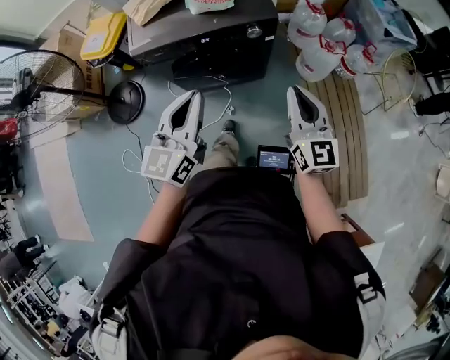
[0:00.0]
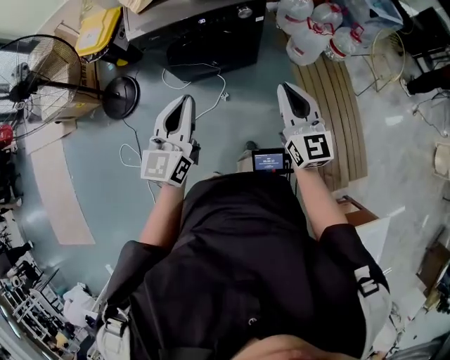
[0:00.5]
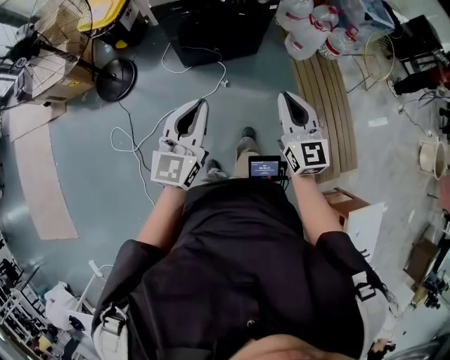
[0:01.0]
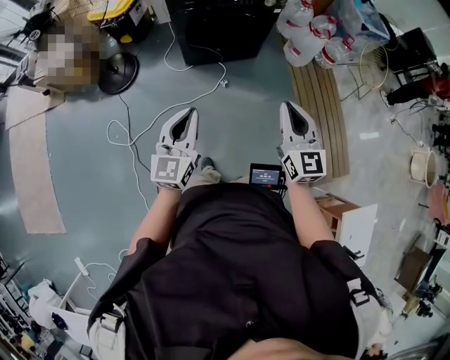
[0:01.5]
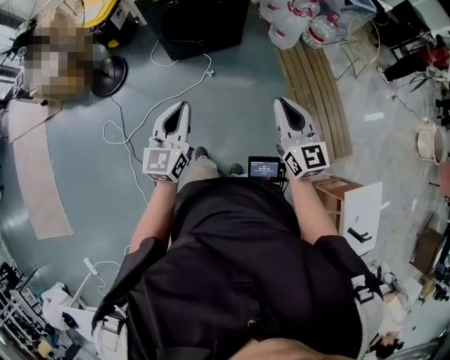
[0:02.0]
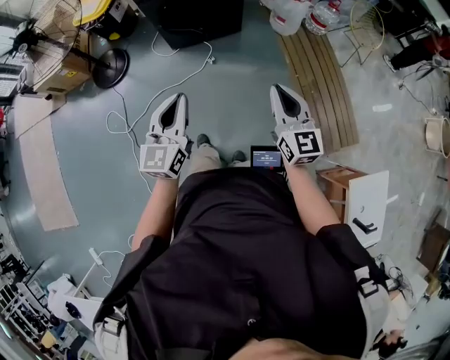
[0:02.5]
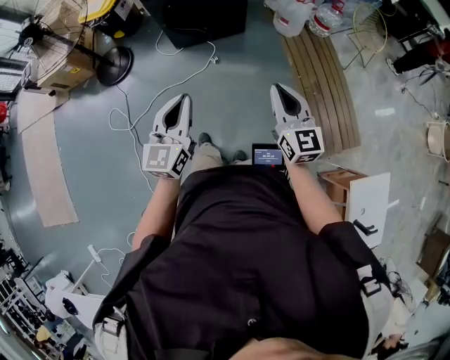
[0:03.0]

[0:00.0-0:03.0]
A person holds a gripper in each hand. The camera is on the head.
0.0 to 1.5 s: The left gripper heads backward and to the left, covering about 40 cm. Meanwhile the right gripper moves backward, roughly 35 cm.
1.5 to 3.0 s: Both grippers move to the right and backward, some 15 cm.

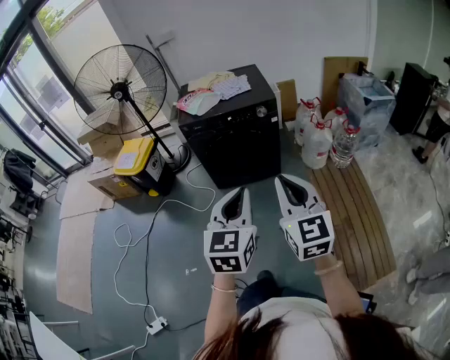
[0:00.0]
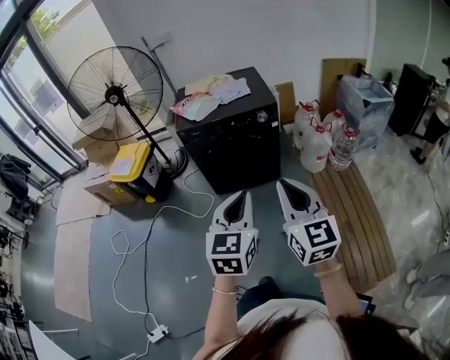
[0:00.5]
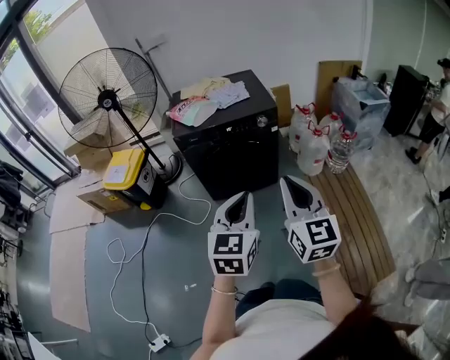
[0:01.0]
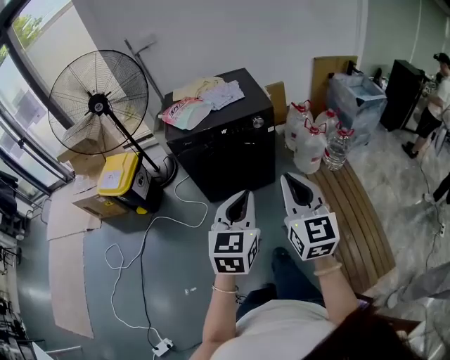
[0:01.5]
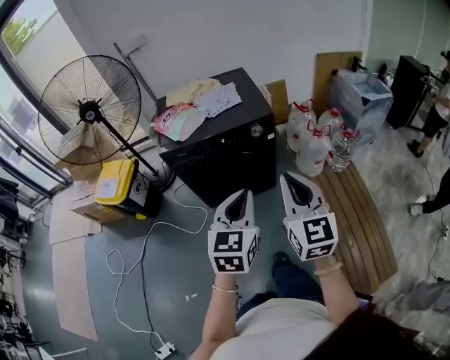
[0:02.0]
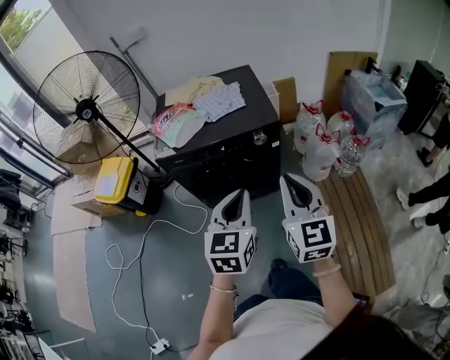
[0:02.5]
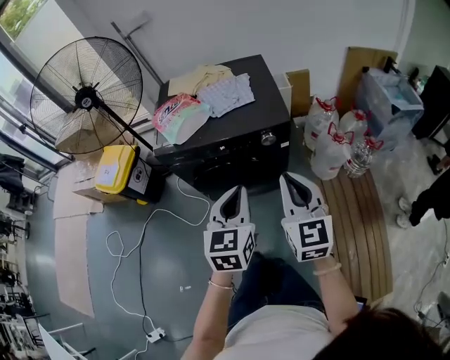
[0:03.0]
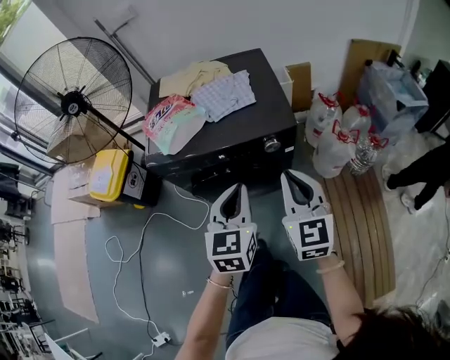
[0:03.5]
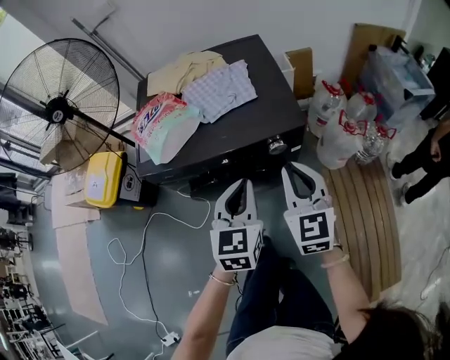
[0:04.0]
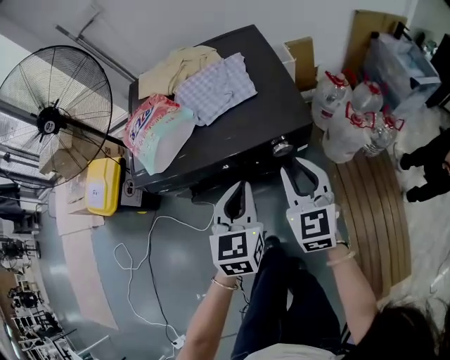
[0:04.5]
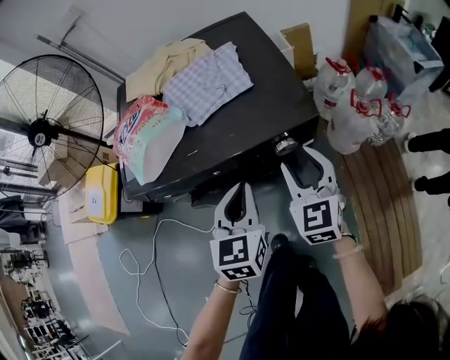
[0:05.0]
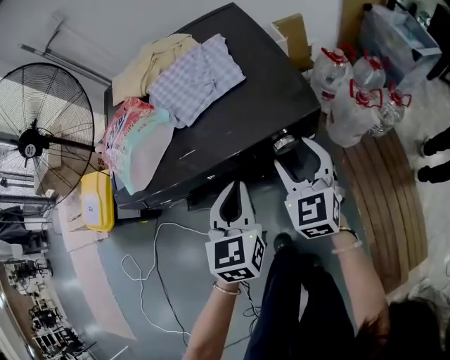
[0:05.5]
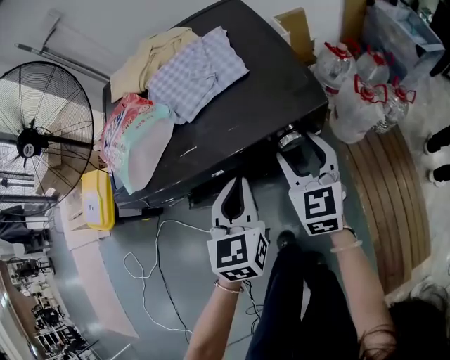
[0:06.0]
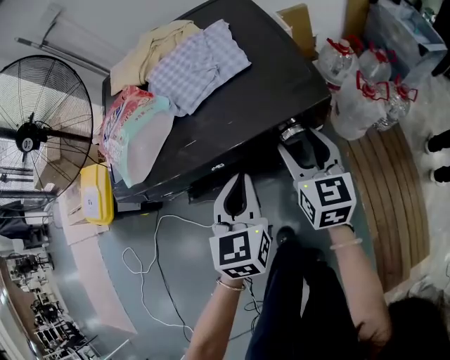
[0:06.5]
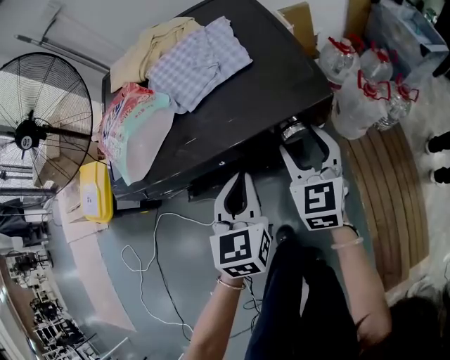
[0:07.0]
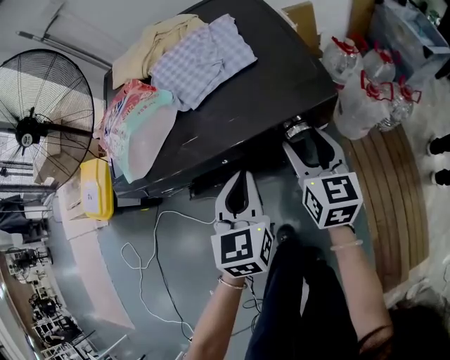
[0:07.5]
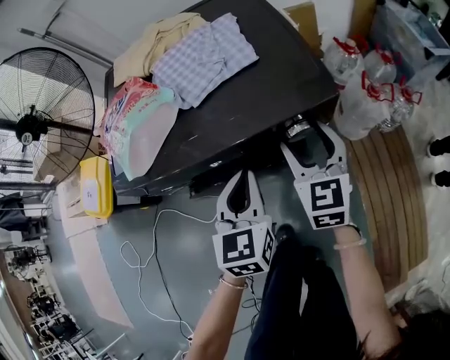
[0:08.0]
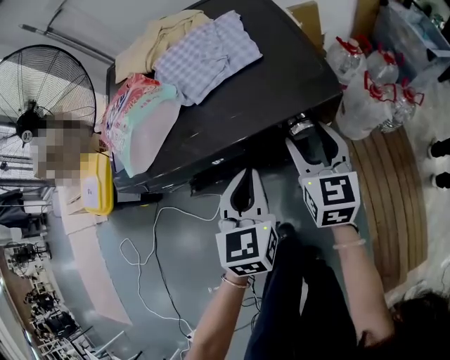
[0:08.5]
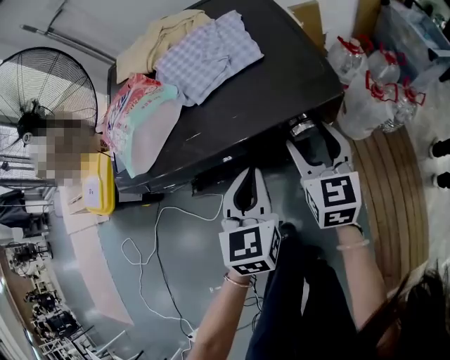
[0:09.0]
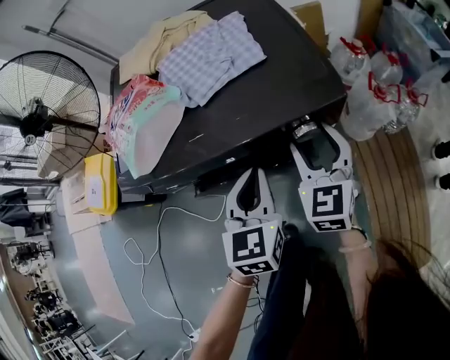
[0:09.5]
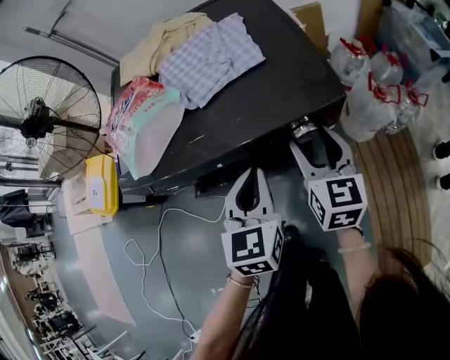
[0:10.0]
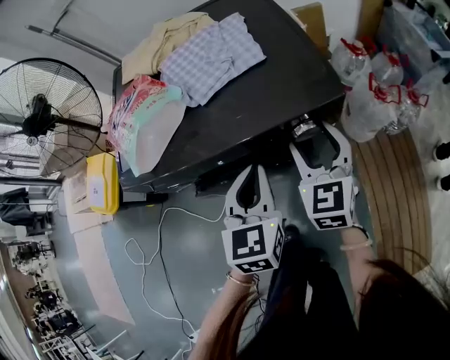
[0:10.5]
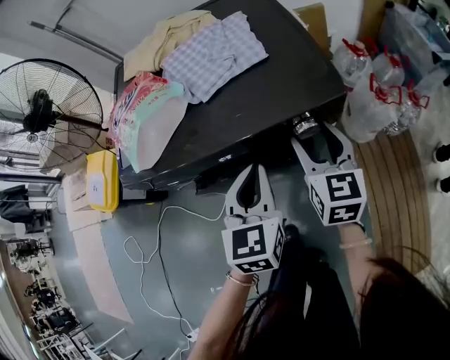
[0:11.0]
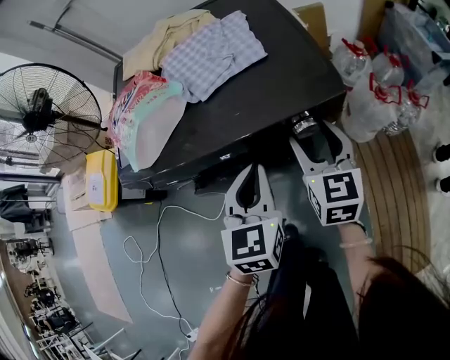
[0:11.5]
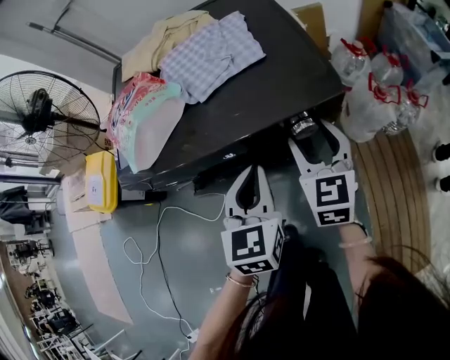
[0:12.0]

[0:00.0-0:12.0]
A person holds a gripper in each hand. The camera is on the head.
0.0 to 2.0 s: The two grippers go some 20 cm forward.
2.0 to 4.0 s: The grippers both shift forward and downward by roughly 35 cm.
4.0 to 6.0 s: Both grippers travel together downward and forward, some 15 cm. The right gripper opens.
6.0 to 8.0 s: There are only small adjustments of the grippers.

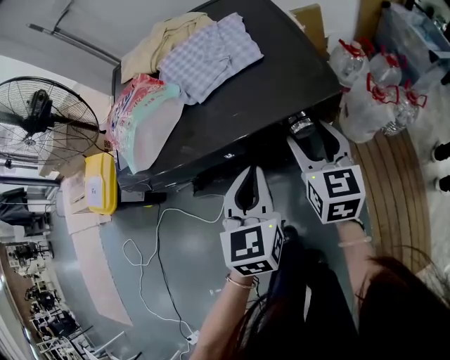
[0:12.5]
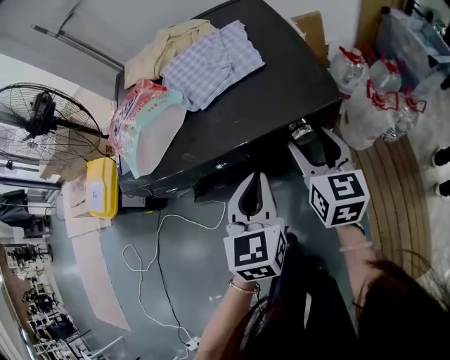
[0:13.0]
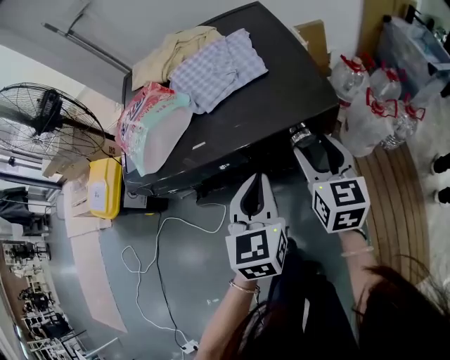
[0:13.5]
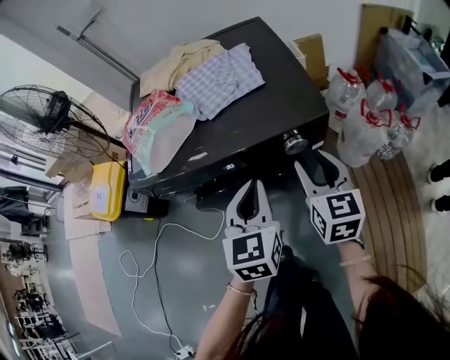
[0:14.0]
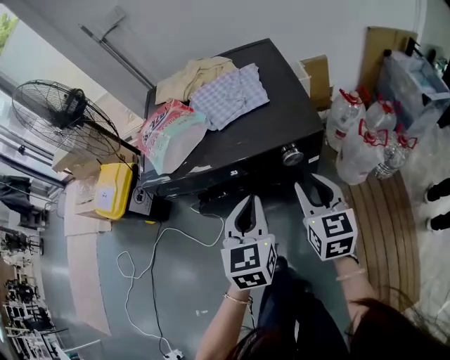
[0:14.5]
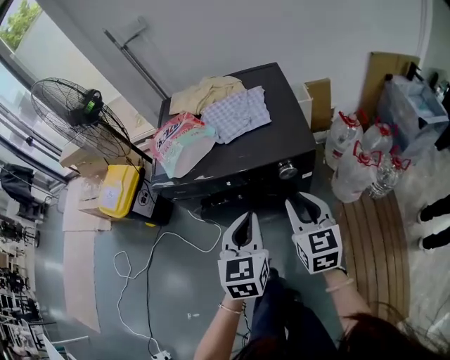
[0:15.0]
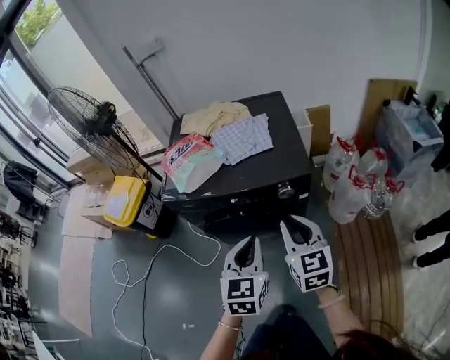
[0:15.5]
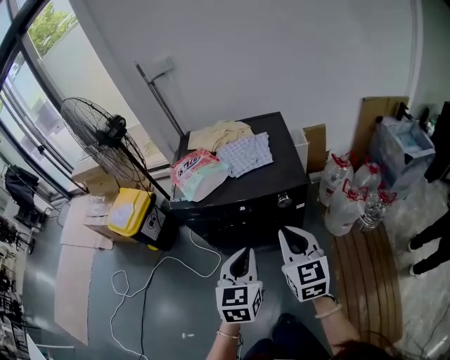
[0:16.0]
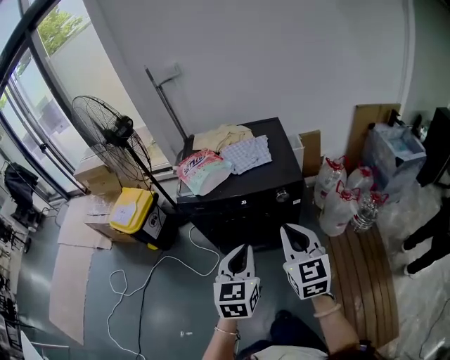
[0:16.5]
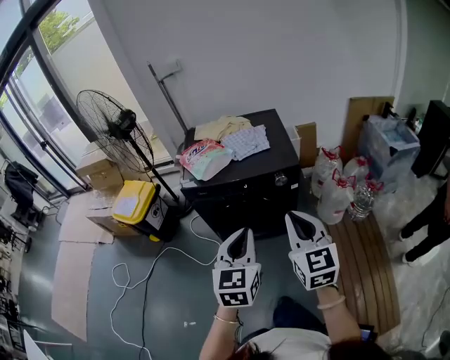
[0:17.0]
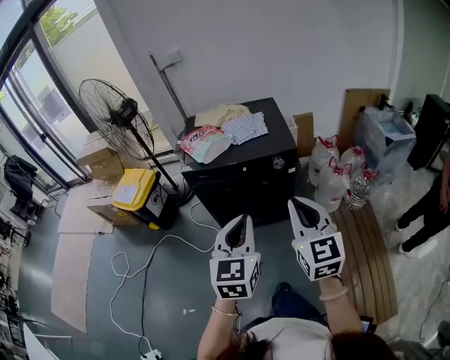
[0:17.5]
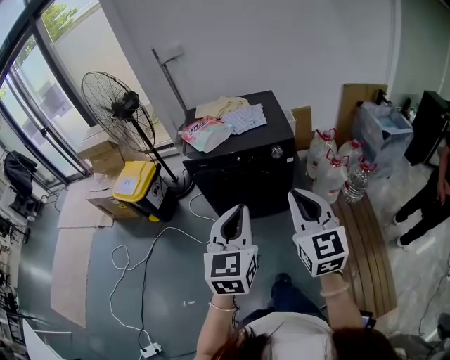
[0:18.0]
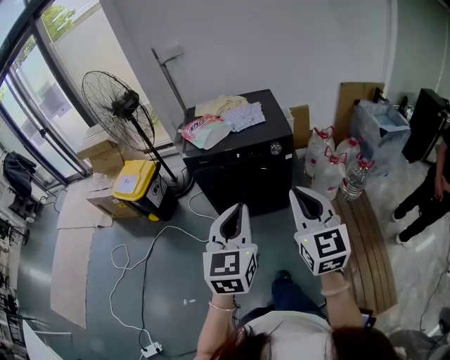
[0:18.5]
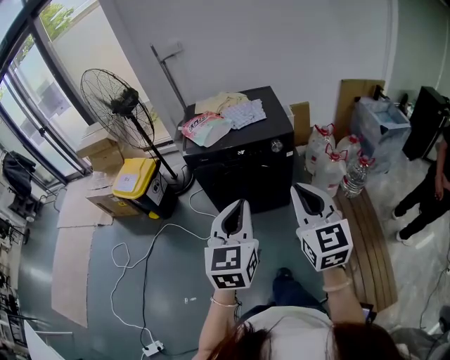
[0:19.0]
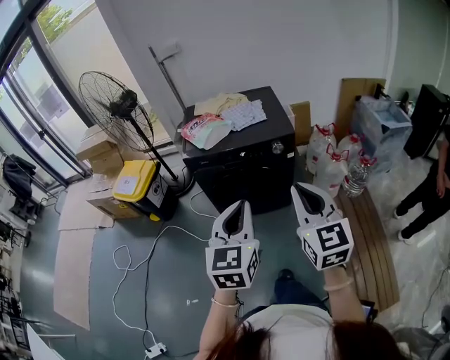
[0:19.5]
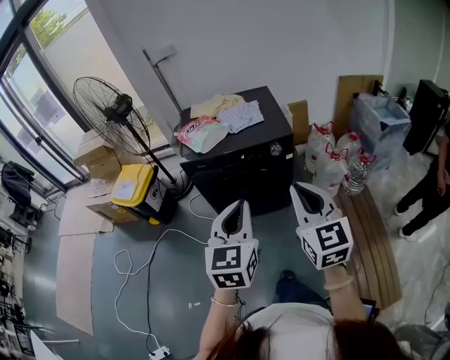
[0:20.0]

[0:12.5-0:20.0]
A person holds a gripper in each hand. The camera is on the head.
12.5 to 14.5 s: The left gripper goes about 10 cm backward and upward, while the right gripper travels backward by about 10 cm, and closes up.
14.5 to 16.5 s: The right gripper is displaced upward and backward by roughly 25 cm, and closes. Meanwhile the left gripper travels backward and upward by roughly 25 cm.
16.5 to 18.0 s: The two grippers go some 20 cm backward and upward.
18.0 to 20.0 s: The grippers stay close to where they were, moving slightly.

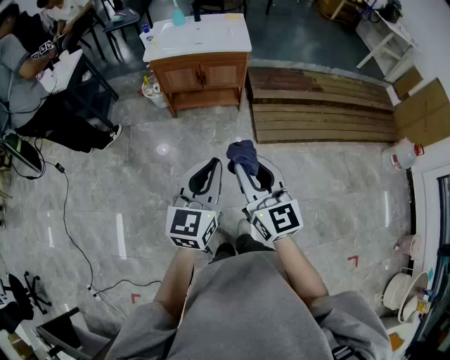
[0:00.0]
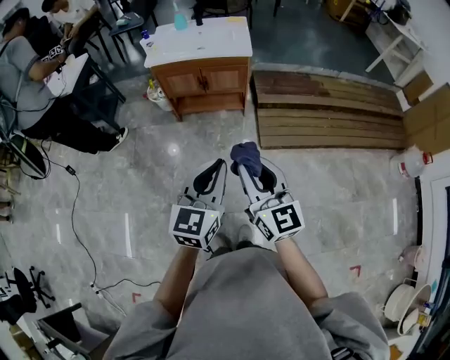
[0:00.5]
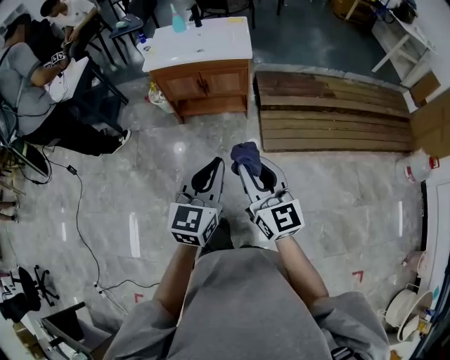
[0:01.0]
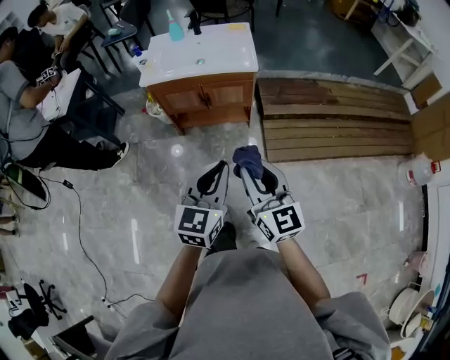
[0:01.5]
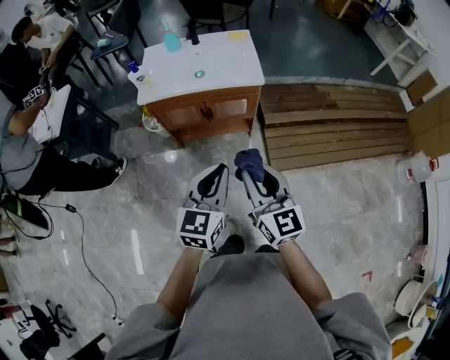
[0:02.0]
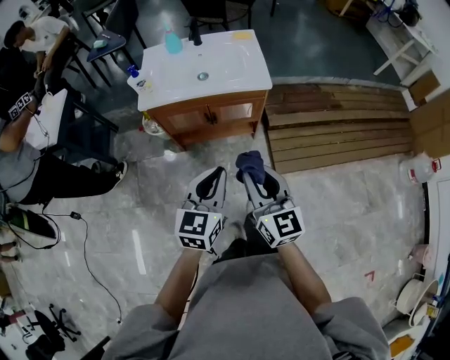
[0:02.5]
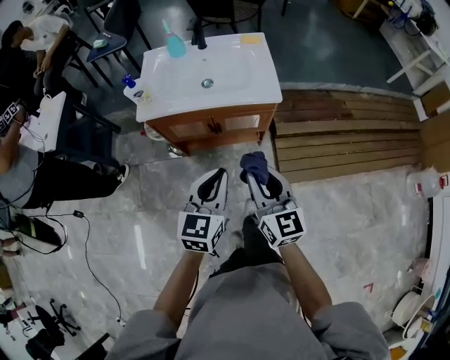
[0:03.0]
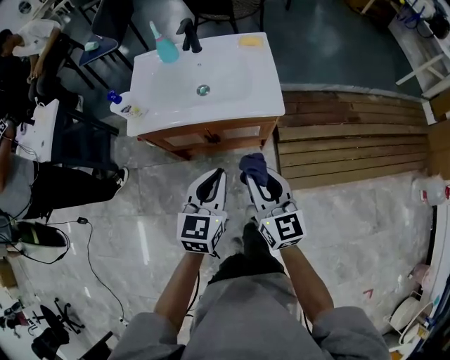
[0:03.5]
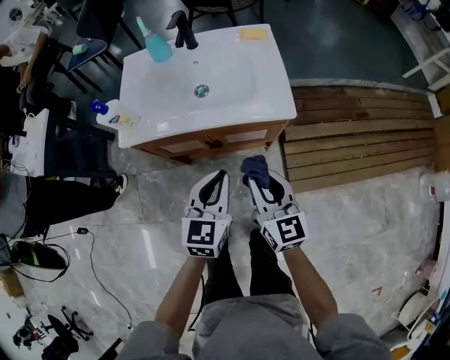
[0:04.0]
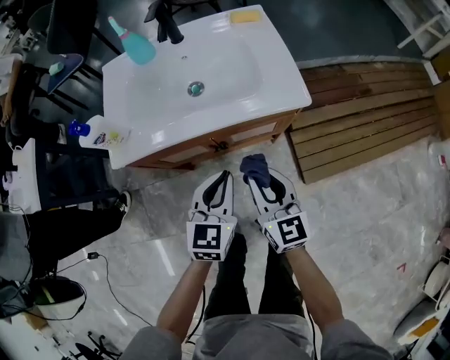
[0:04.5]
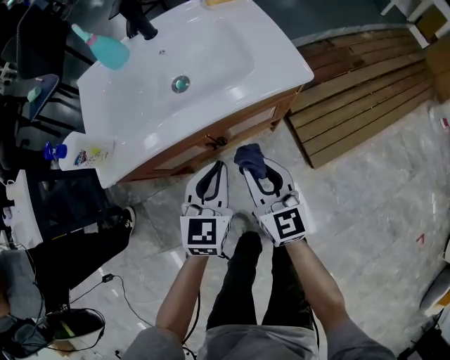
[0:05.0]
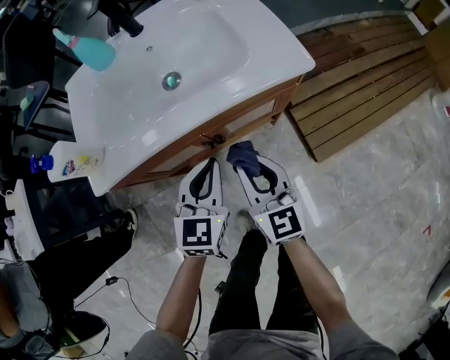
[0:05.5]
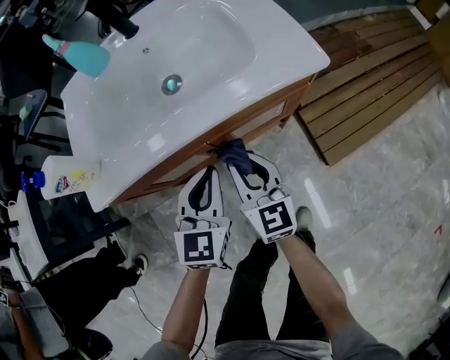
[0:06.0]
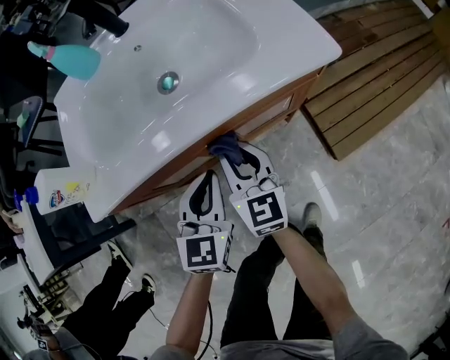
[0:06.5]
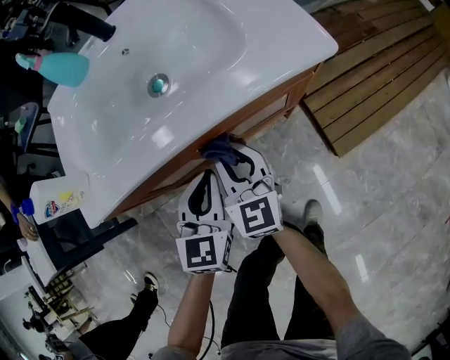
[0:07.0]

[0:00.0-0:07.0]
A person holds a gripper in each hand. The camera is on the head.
0.0 to 2.0 s: The grippers both shift forward by roughly 30 cm.
2.0 to 3.5 s: The grippers both shift forward and downward by some 25 cm.
3.5 to 5.0 s: The left gripper moves downward and forward, about 20 cm; the right gripper is displaced downward and to the left by roughly 20 cm.
5.0 to 7.0 s: The right gripper heads downward, forward and to the left, covering roughly 15 cm, while the left gripper goes about 10 cm downward.
